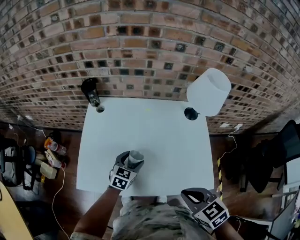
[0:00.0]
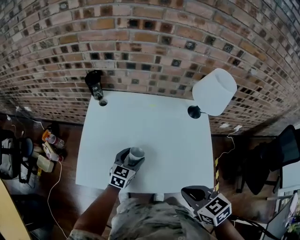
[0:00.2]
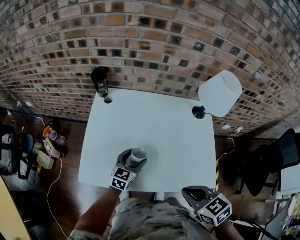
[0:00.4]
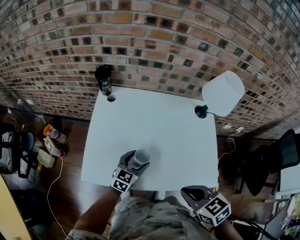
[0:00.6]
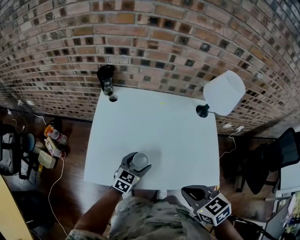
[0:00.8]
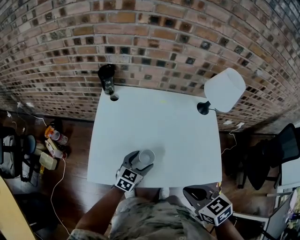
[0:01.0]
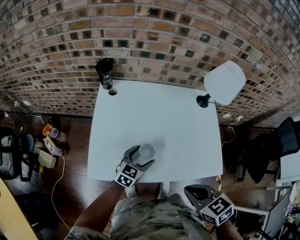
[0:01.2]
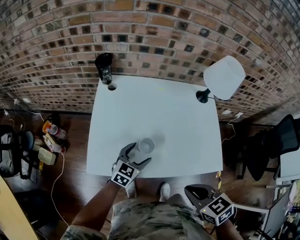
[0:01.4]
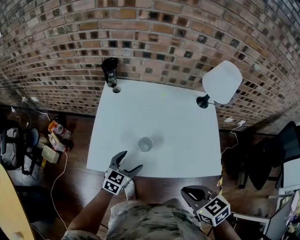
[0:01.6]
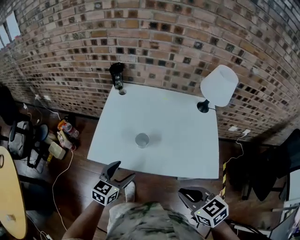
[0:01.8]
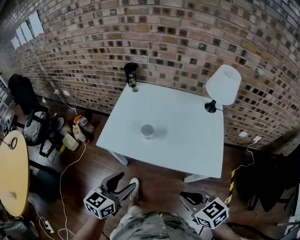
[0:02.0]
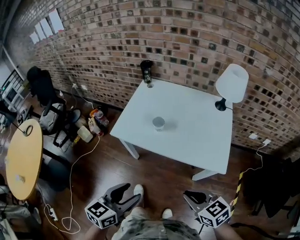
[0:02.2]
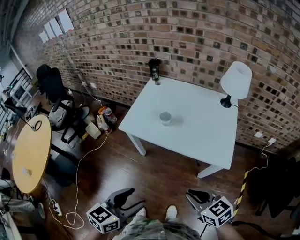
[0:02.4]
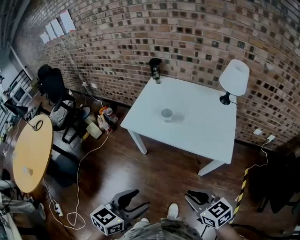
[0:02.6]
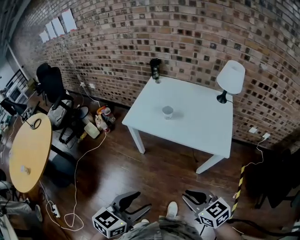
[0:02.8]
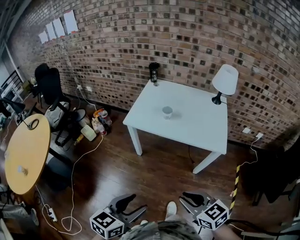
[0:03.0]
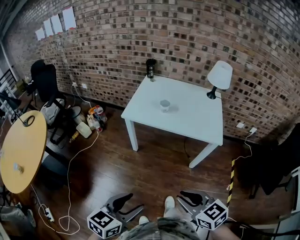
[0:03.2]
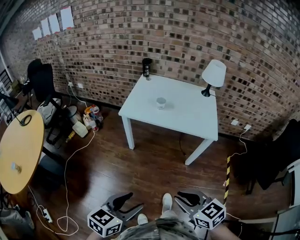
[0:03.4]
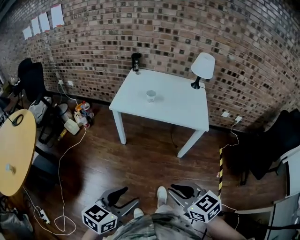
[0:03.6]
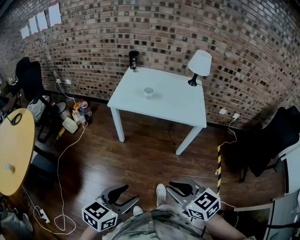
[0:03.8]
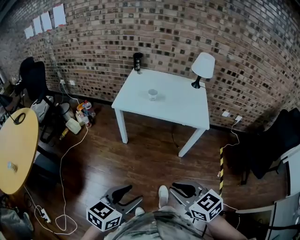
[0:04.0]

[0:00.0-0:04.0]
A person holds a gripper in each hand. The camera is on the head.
0:00.0 to 0:01.4: The right gripper shifts about 10 cm to the left; the left gripper is displaced backward and to the left by about 10 cm.
0:01.4 to 0:02.6: The right gripper goes roughly 25 cm backward, and turns by approximately 30 degrees, while the left gripper shifts approximately 50 cm backward and upward, and swivels some 30 degrees.
0:02.6 to 0:04.0: Both grippers move backward and to the left, roughly 25 cm.

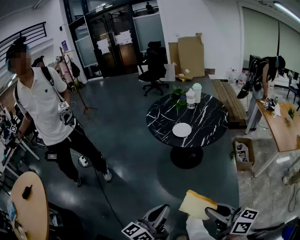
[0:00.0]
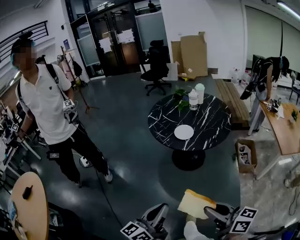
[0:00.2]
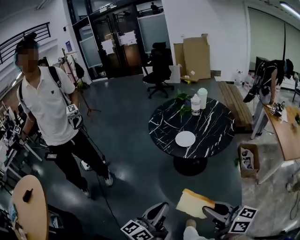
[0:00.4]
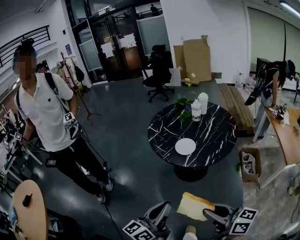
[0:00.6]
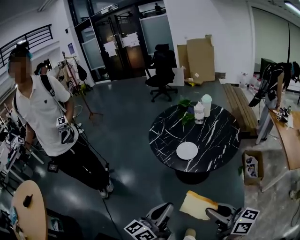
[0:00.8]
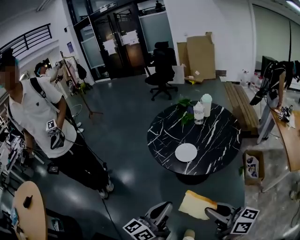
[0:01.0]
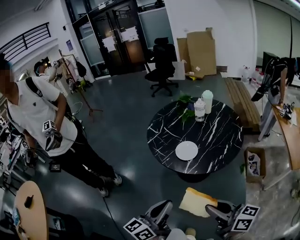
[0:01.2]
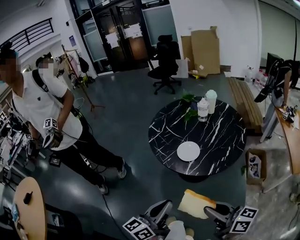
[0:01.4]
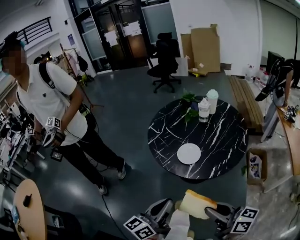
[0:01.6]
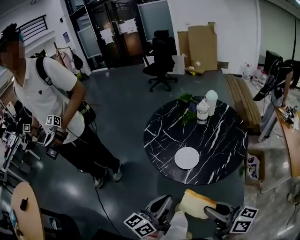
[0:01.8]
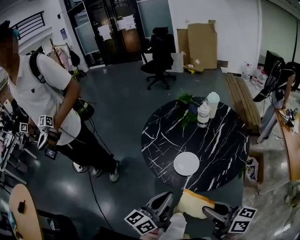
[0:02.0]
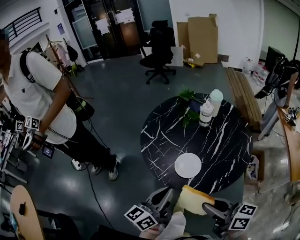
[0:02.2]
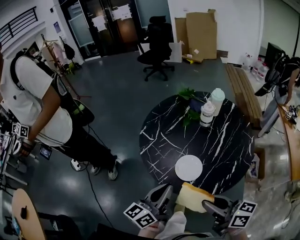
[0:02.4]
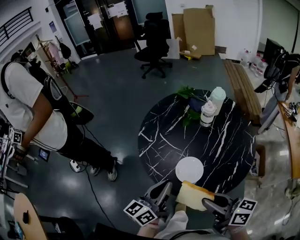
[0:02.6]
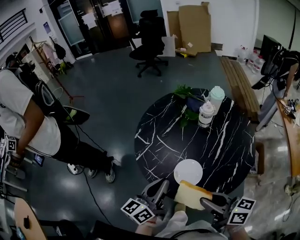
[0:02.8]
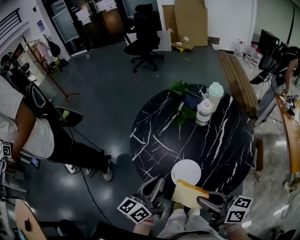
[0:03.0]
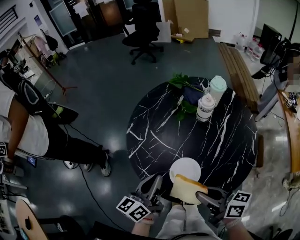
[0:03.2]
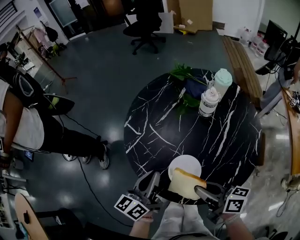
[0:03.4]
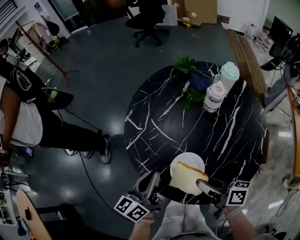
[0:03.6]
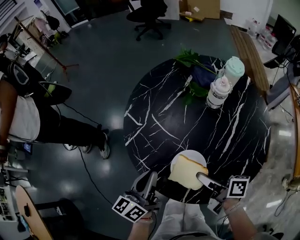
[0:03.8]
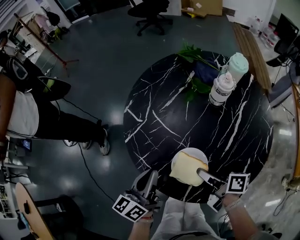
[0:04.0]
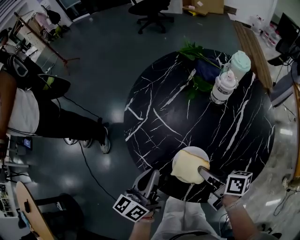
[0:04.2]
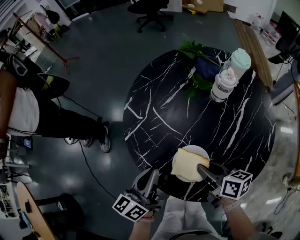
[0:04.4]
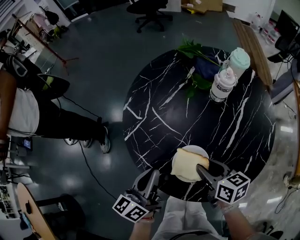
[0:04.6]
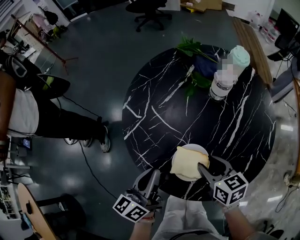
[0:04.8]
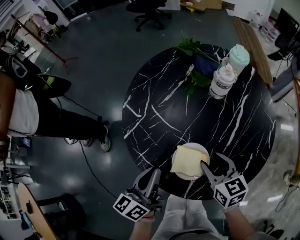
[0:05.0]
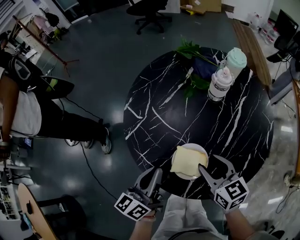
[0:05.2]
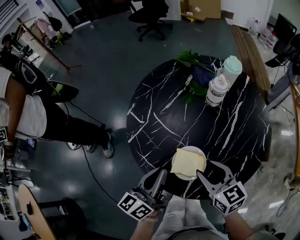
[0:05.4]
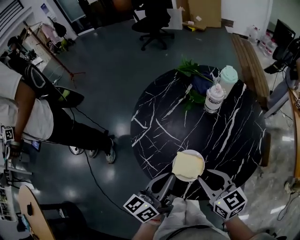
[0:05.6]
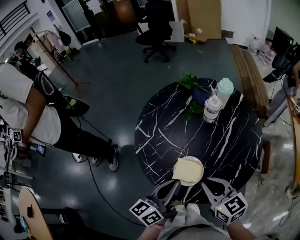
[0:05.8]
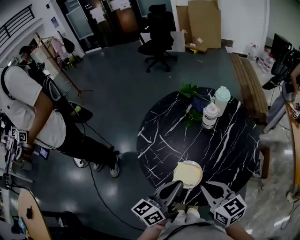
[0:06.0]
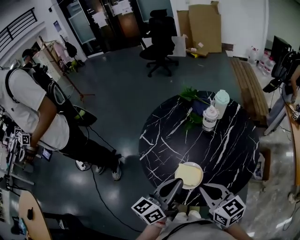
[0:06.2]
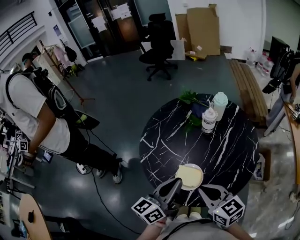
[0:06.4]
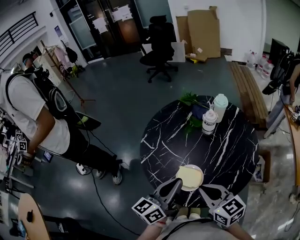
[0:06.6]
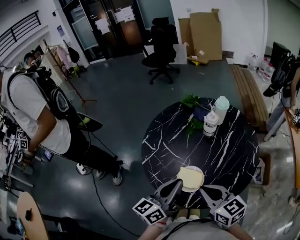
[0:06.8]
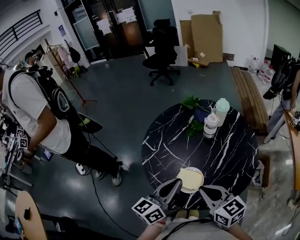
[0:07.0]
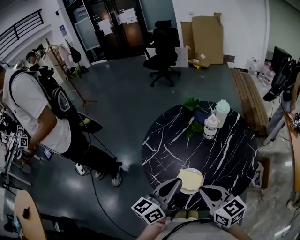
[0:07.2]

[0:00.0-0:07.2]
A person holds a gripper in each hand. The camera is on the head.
0:00.0 to 0:01.4: The two grippers go about 25 cm forward.
0:01.4 to 0:02.8: The grippers both shift forward by roughly 30 cm.
0:02.8 to 0:04.4: The left gripper goes roughly 10 cm downward, while the right gripper is displaced downward and forward by roughly 20 cm, and turns by roughly 20 degrees.
0:04.4 to 0:05.8: The left gripper moves upward, to the right and backward, some 15 cm. The right gripper heads upward and backward, covering some 15 cm, rotates about 40 degrees, and opens, then closes again.
0:05.8 to 0:07.2: The right gripper shifts by roughly 5 cm. The left gripper goes roughly 5 cm upward.

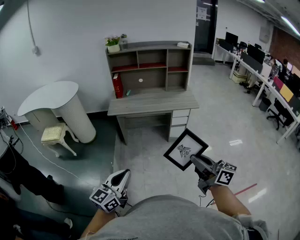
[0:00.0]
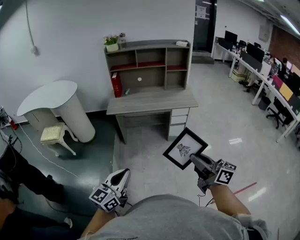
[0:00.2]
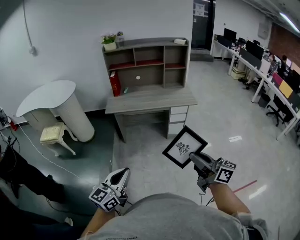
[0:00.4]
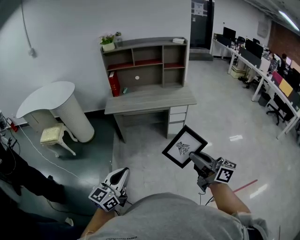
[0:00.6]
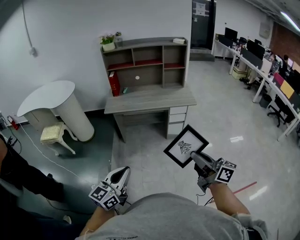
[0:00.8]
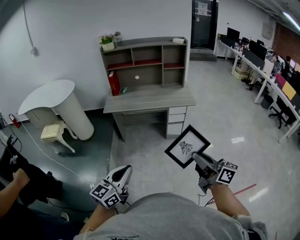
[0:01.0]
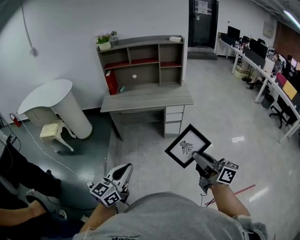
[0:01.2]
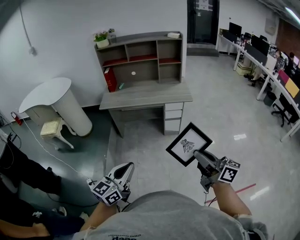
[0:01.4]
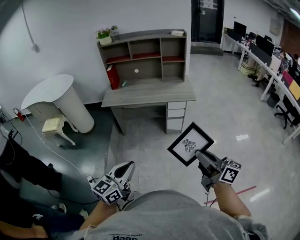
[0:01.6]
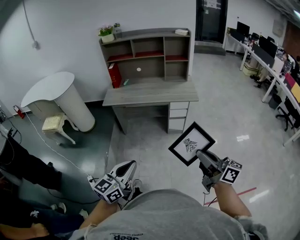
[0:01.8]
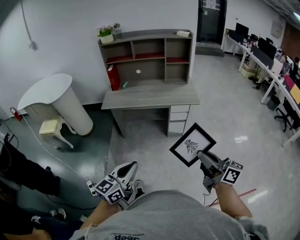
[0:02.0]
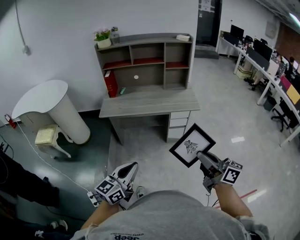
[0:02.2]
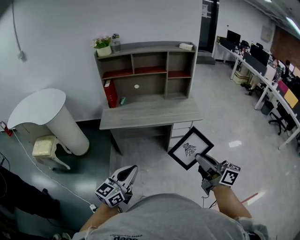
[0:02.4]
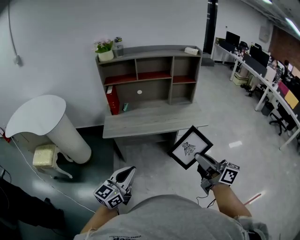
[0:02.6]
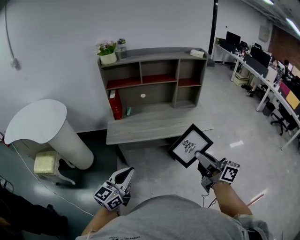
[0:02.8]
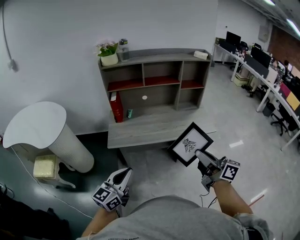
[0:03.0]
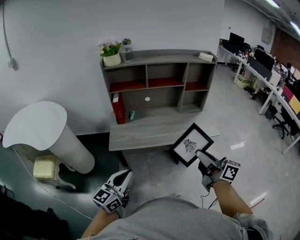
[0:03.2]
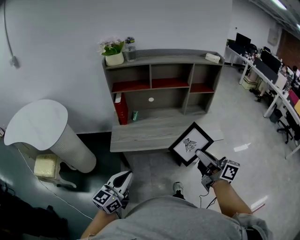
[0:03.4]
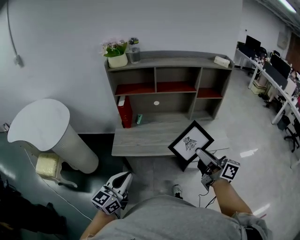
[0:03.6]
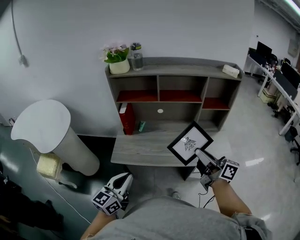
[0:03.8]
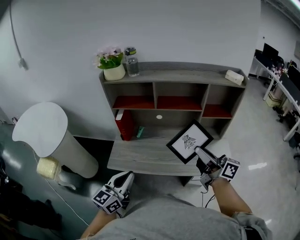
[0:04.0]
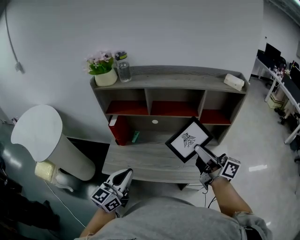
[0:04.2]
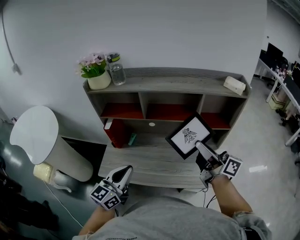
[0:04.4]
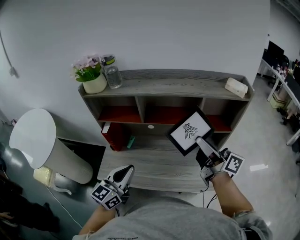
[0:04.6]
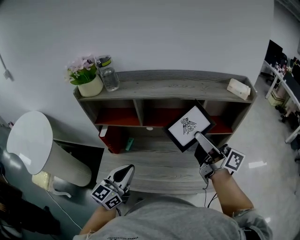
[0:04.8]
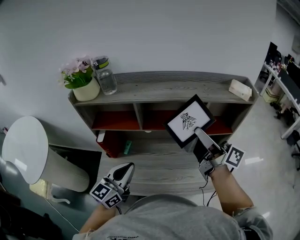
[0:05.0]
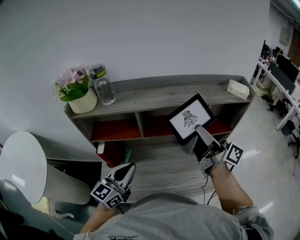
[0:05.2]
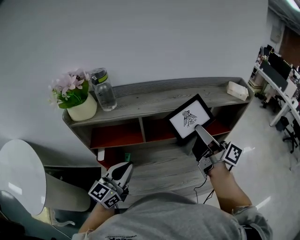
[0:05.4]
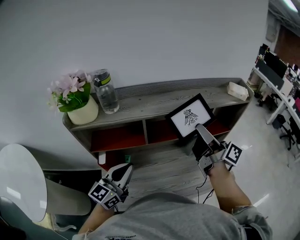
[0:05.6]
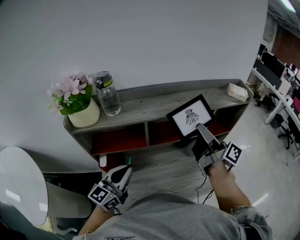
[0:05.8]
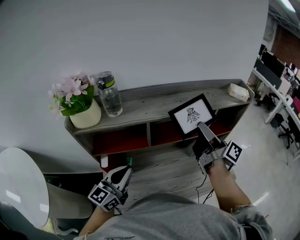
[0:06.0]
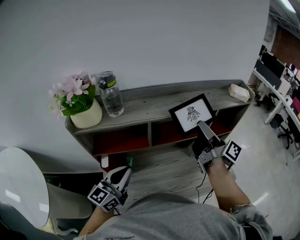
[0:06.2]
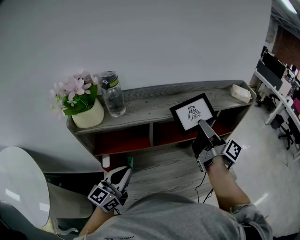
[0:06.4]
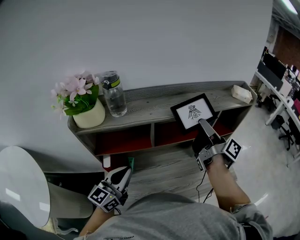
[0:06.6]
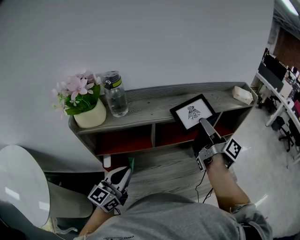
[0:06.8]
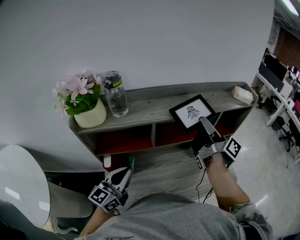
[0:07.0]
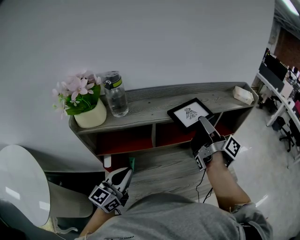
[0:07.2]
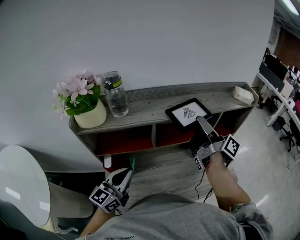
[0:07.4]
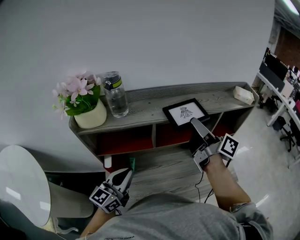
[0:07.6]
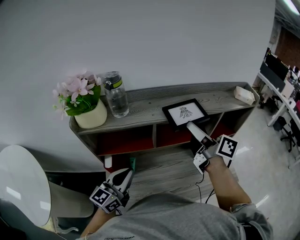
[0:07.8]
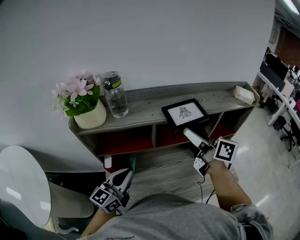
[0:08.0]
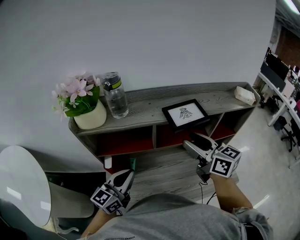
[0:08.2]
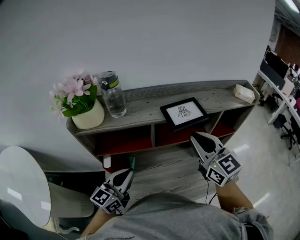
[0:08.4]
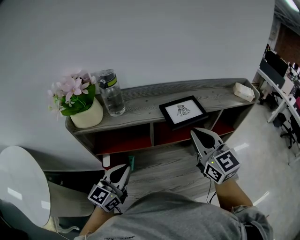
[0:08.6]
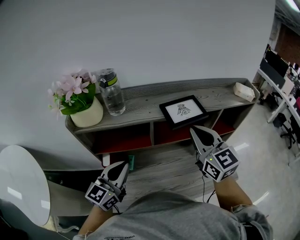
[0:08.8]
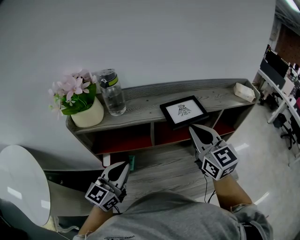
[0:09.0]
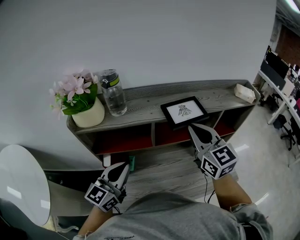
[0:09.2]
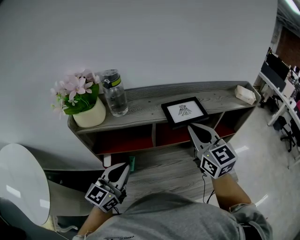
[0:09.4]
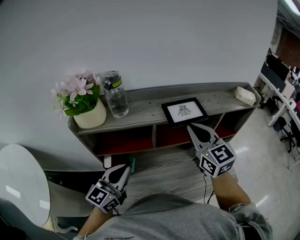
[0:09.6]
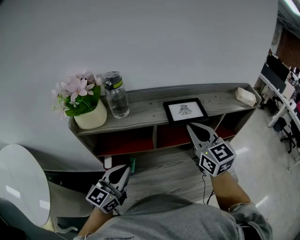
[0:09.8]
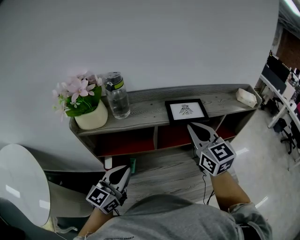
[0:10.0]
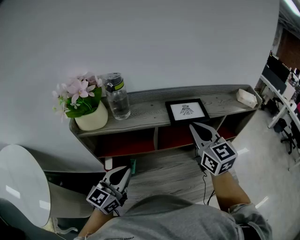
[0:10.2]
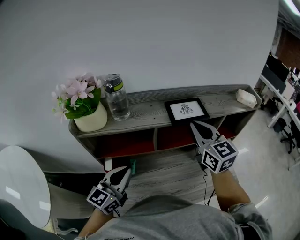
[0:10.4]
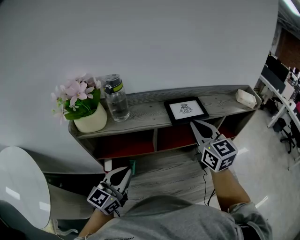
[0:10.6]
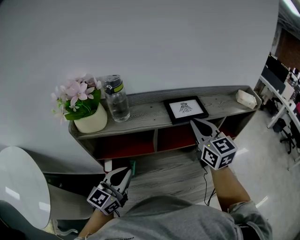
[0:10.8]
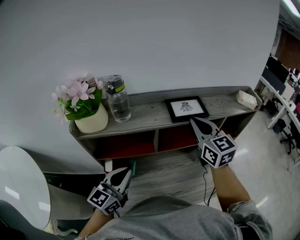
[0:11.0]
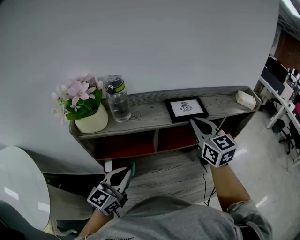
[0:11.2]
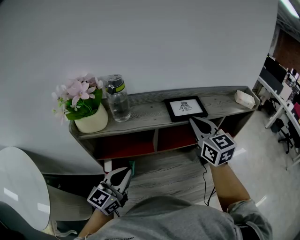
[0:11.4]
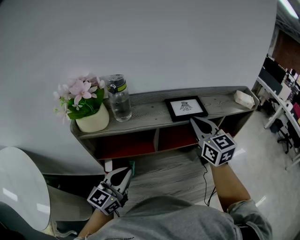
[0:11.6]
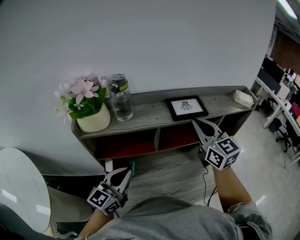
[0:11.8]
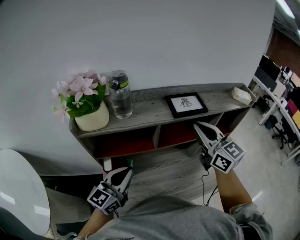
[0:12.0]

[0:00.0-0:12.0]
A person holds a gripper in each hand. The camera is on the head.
0:00.0 to 0:01.6: Both grippers move to the right, approximately 15 cm.
0:01.6 to 0:03.0: Both grippers are carried forward and to the left, approximately 40 cm.
0:03.0 to 0:04.4: The right gripper goes about 40 cm forward, while the left gripper goes about 35 cm forward and to the right.
0:04.4 to 0:06.0: The two grippers go approximately 20 cm forward and to the left. The right gripper changes its angle by some 30 degrees.
0:06.0 to 0:07.6: The right gripper is displaced to the left by about 5 cm.
0:07.6 to 0:09.0: The right gripper rolls counterclockwise, seen from behind, by roughly 70 degrees, and closes up.
0:09.0 to 0:12.0: The grippers move only a little.
